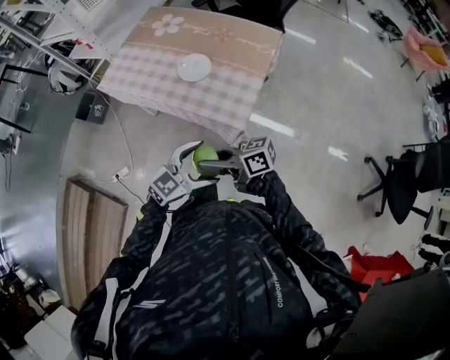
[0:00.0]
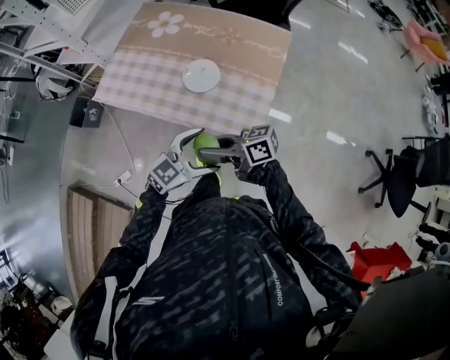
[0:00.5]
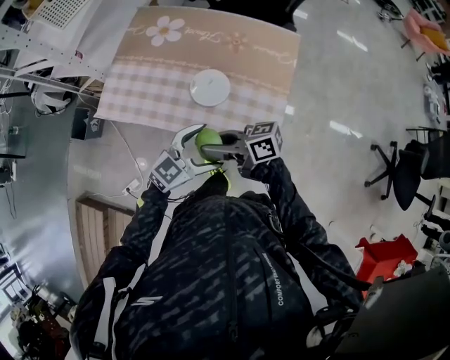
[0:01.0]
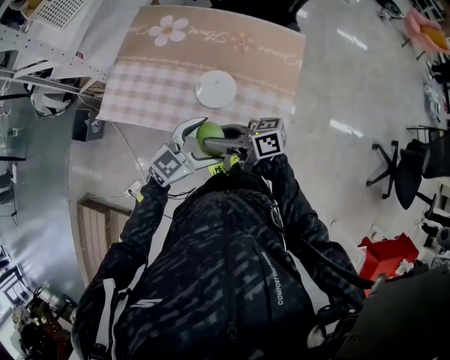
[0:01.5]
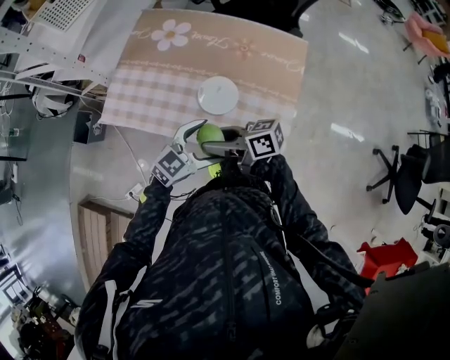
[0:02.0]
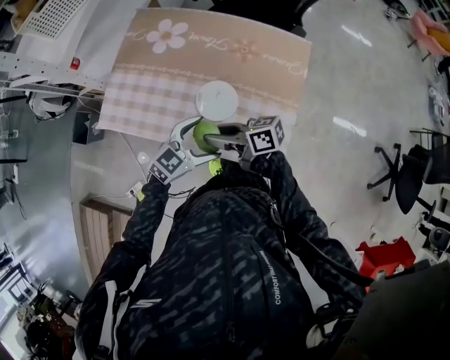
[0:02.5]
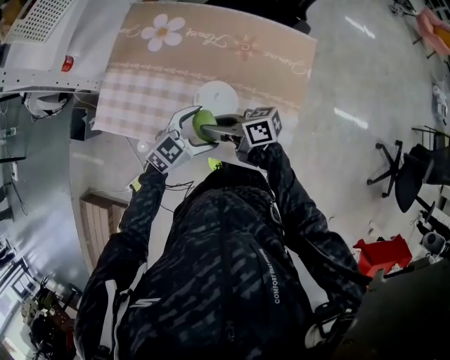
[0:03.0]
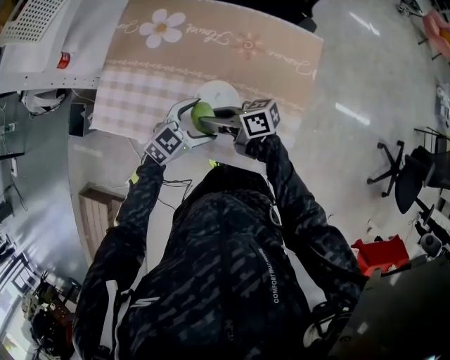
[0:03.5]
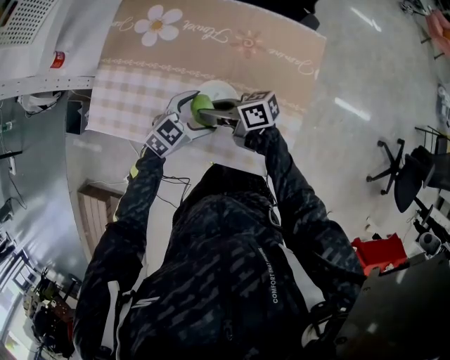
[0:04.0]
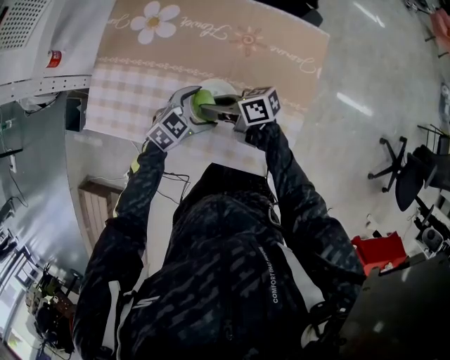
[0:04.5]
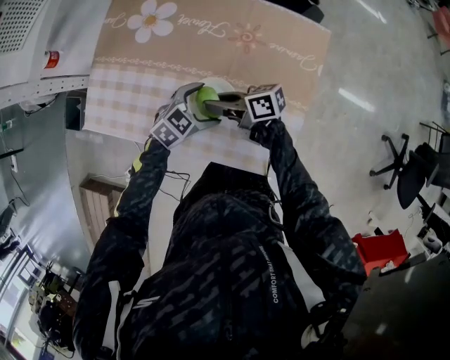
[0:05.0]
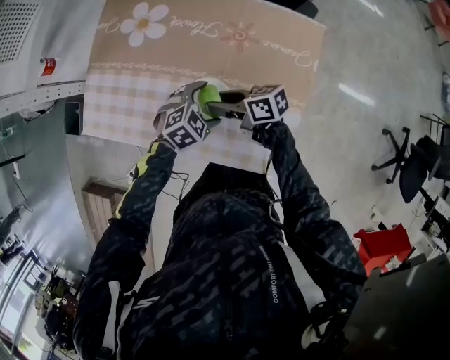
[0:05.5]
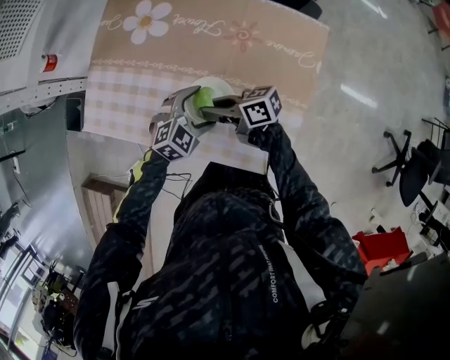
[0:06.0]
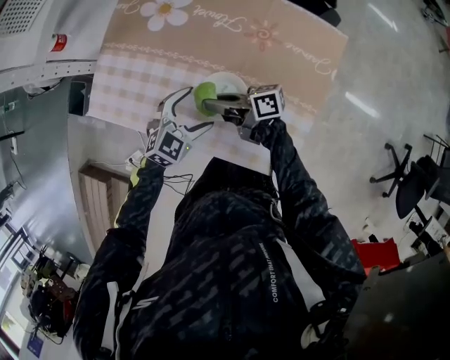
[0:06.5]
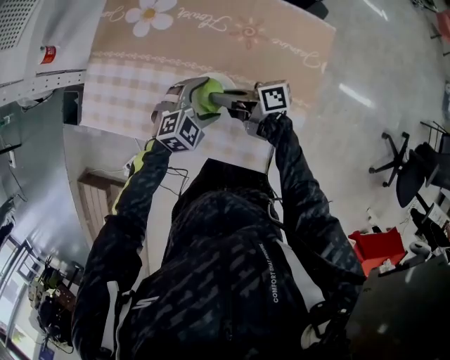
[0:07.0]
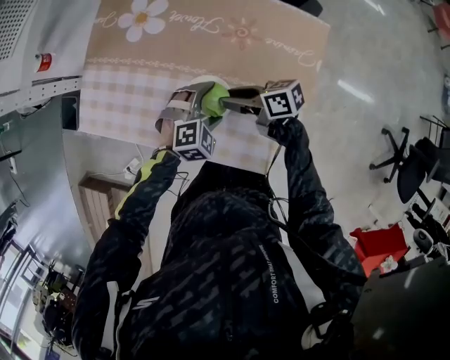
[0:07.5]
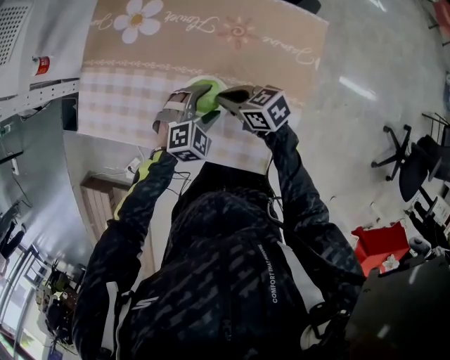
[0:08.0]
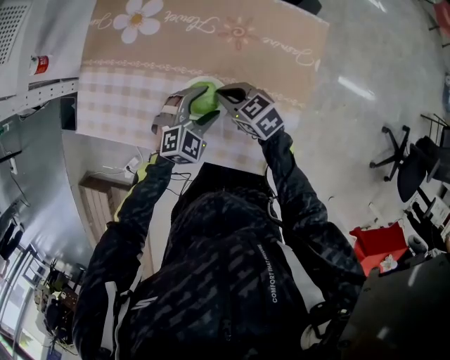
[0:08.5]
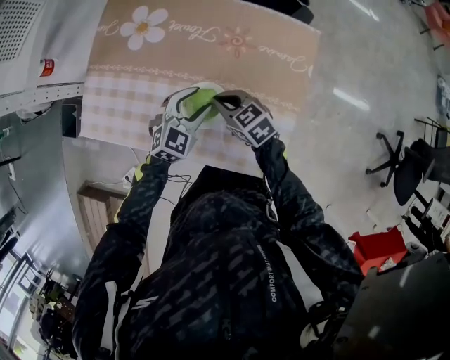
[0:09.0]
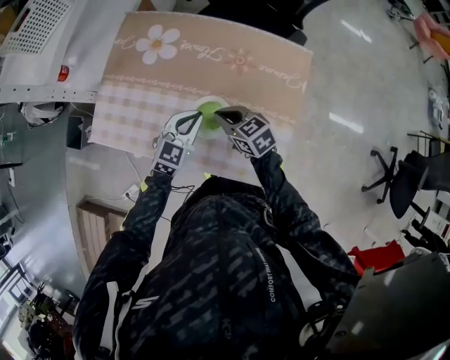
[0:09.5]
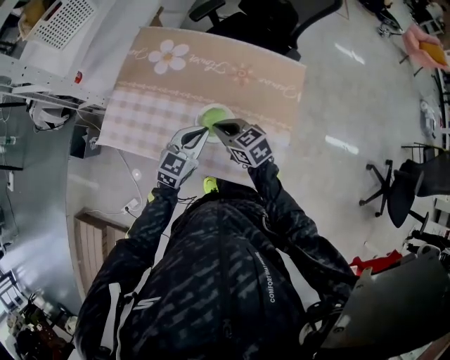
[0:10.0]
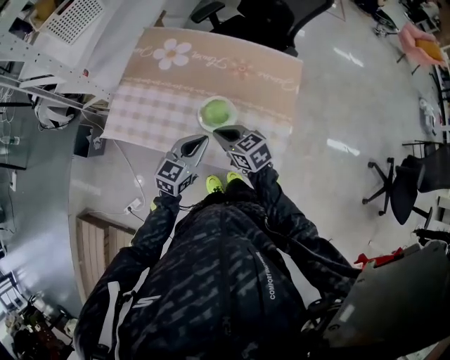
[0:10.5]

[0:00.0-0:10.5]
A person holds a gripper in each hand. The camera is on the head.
0:00.0 to 0:02.0: The right gripper moves roughly 30 cm, and opens. Meanwhile the left gripper moves some 30 cm.
0:02.0 to 0:04.0: The right gripper moves about 20 cm, and closes up; the left gripper changes place by approximately 20 cm.
0:04.0 to 0:06.5: The right gripper opens and closes again.
0:06.5 to 0:08.5: The right gripper moves approximately 10 cm, angles its fingers downward, by about 40 degrees, and opens and closes again; the left gripper ends up approximately 10 cm from where it was.
0:08.5 to 0:10.5: The grippers both shift upward, backward and to the left by some 20 cm. The left gripper turns by roughly 50 degrees, and closes.

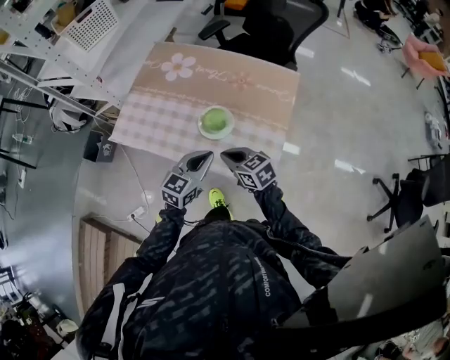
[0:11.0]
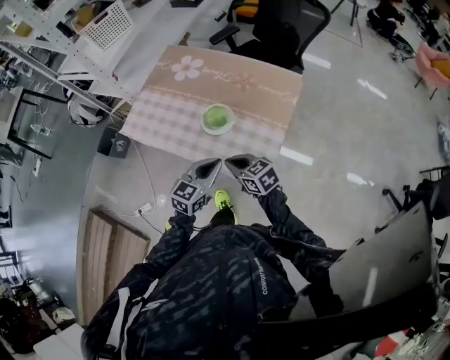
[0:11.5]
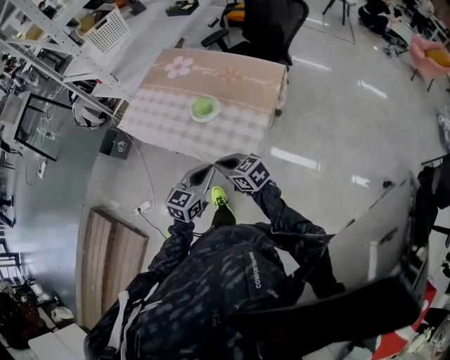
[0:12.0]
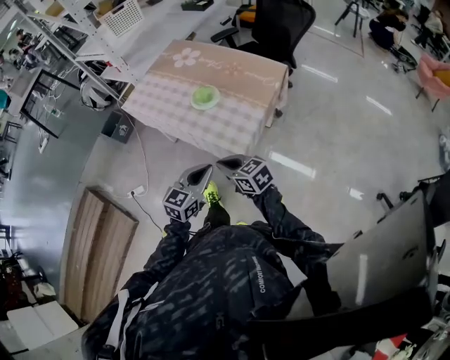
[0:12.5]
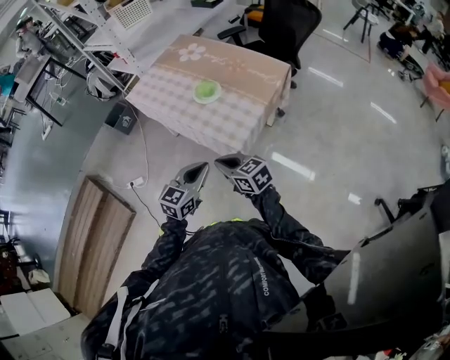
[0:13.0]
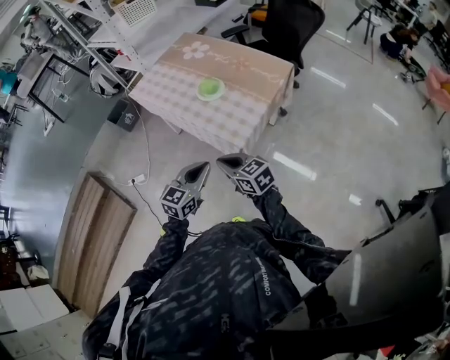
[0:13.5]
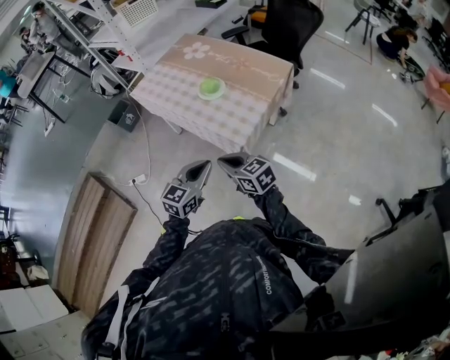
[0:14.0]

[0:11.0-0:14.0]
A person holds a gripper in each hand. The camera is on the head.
0:11.0 to 0:12.5: The two grippers go approximately 25 cm backward.
0:12.5 to 0:14.0: The right gripper moves backward, roughly 5 cm.

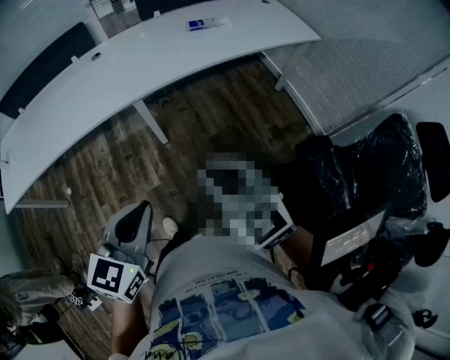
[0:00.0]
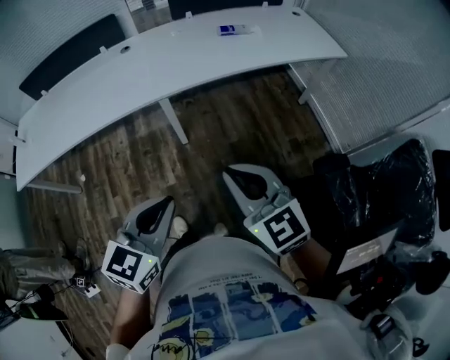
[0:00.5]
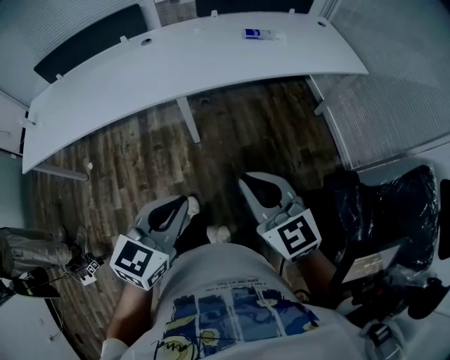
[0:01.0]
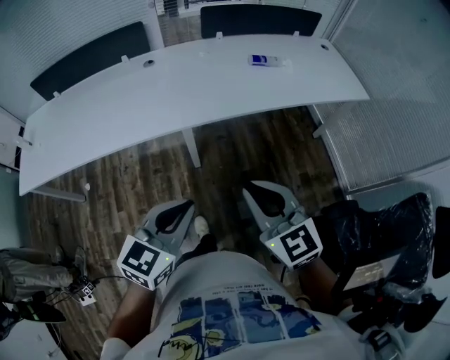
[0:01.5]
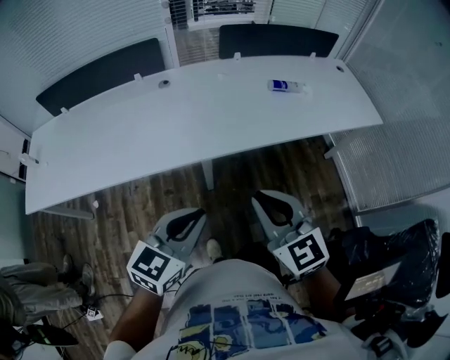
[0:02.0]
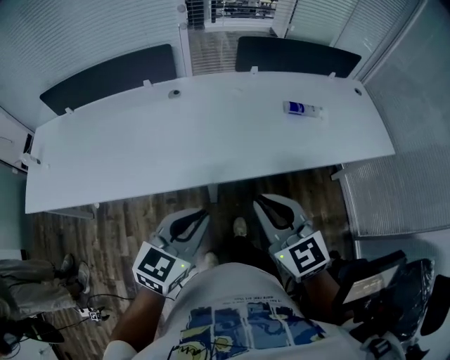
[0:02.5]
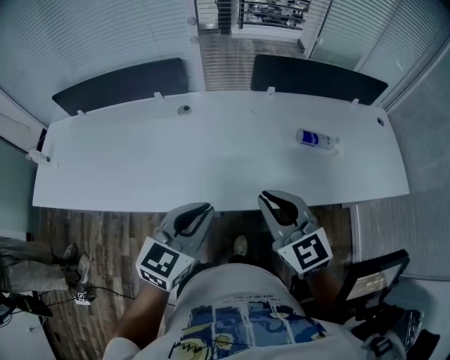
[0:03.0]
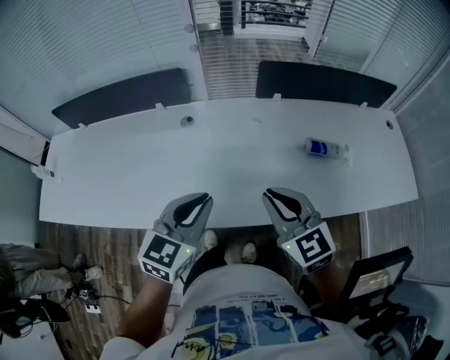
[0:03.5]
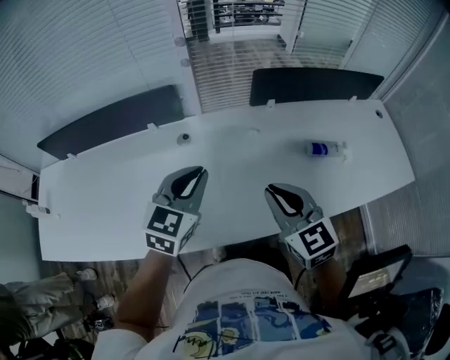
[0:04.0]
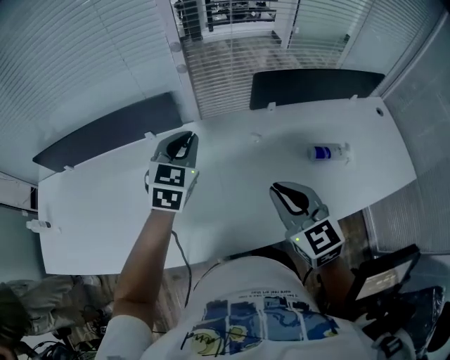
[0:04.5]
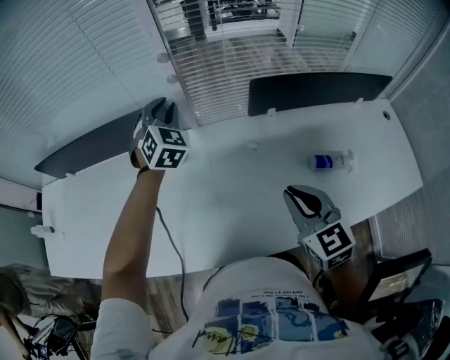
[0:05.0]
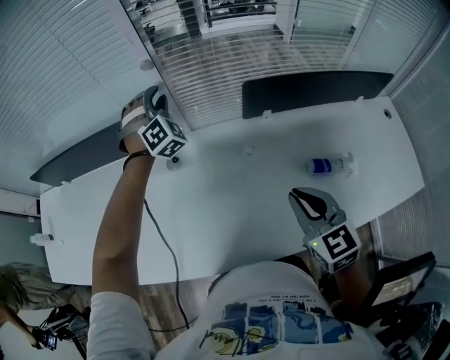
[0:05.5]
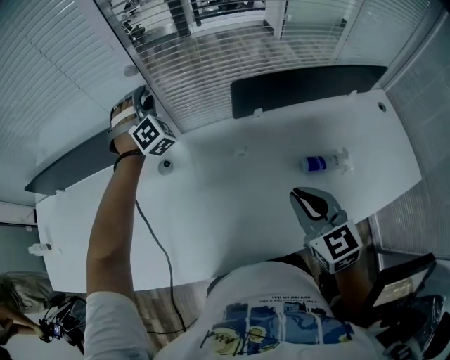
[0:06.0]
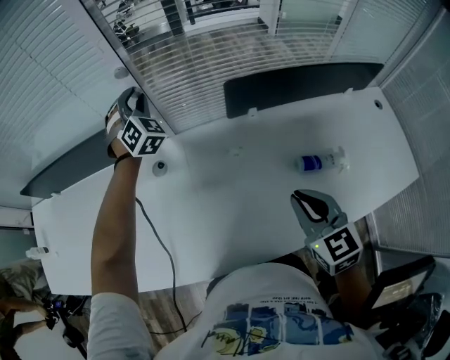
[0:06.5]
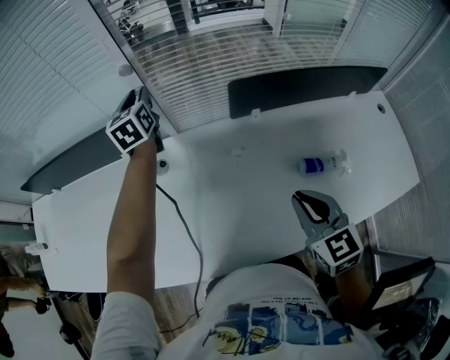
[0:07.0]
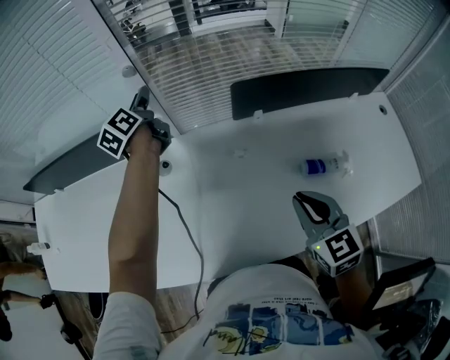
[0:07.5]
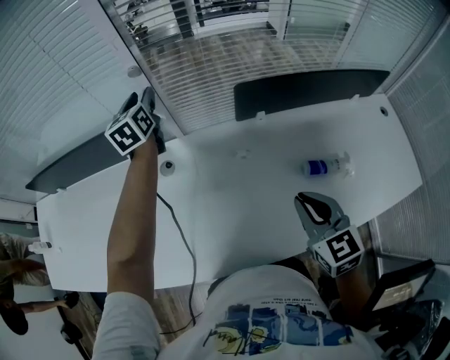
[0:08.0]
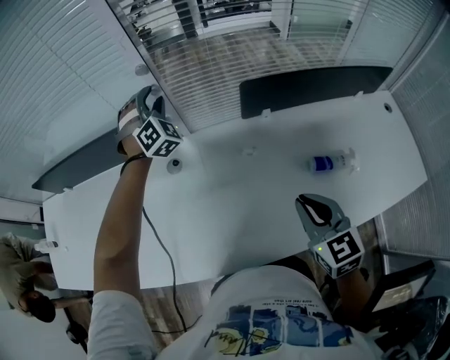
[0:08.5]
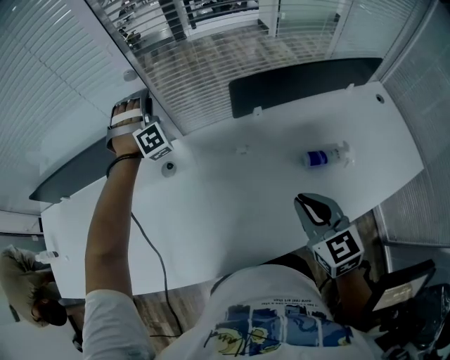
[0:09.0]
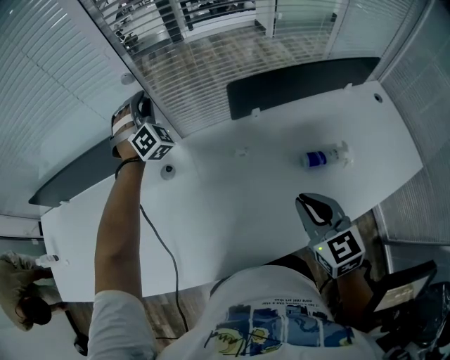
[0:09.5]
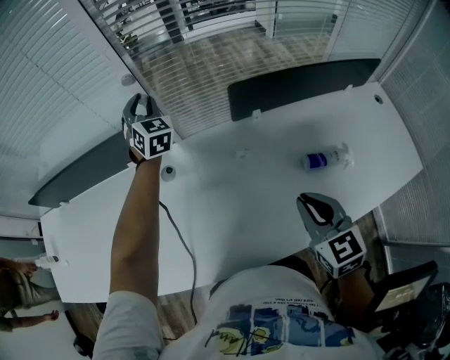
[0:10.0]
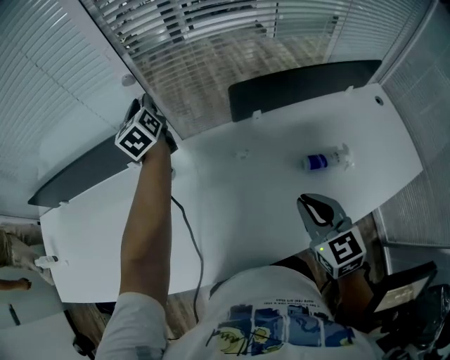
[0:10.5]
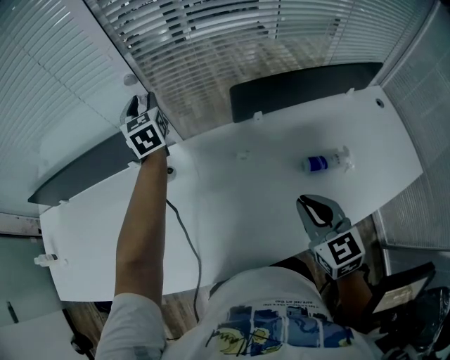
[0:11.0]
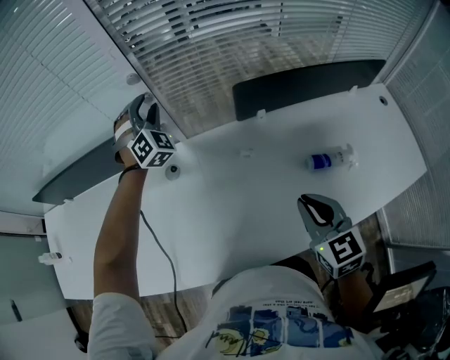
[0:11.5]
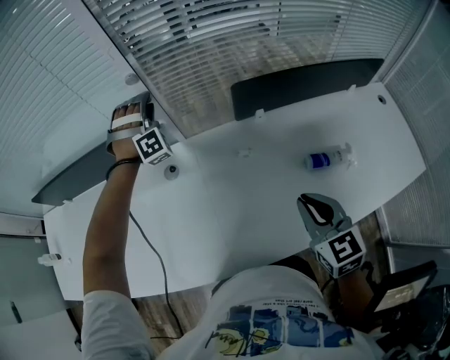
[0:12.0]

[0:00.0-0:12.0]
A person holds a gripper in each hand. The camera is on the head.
0:00.0 to 0:02.0: The left gripper shifts about 25 cm forward. The right gripper travels forward and to the left by about 25 cm.
0:02.0 to 0:04.0: Both grippers travel together forward, approximately 40 cm.
0:04.0 to 0:06.0: The right gripper goes roughly 15 cm to the right and forward, while the left gripper moves forward, approximately 40 cm, rolls clockwise, seen from behind, by about 60 degrees, and opens up.
0:06.0 to 0:08.0: The left gripper rotates around the line of its fingers by approximately 90 degrees, counterclockwise from behind.
0:08.0 to 0:10.0: The left gripper rolls clockwise, seen from behind, by roughly 40 degrees.
0:10.0 to 0:12.0: The left gripper twists approximately 70 degrees clockwise, seen from behind.

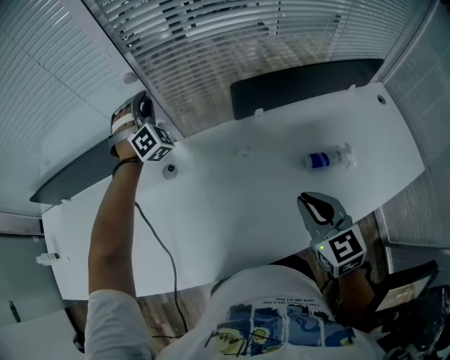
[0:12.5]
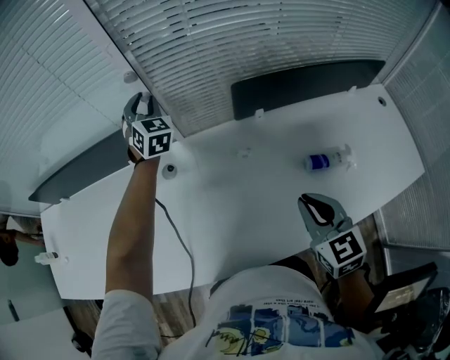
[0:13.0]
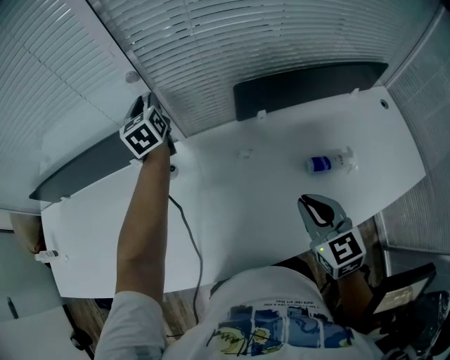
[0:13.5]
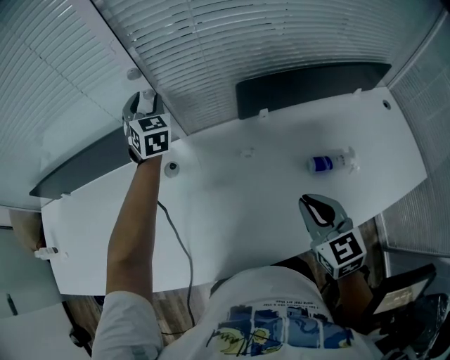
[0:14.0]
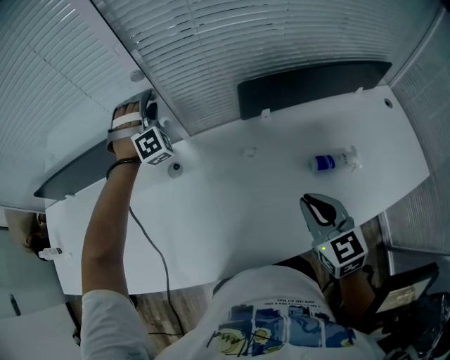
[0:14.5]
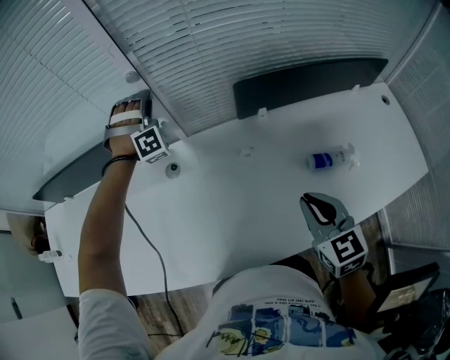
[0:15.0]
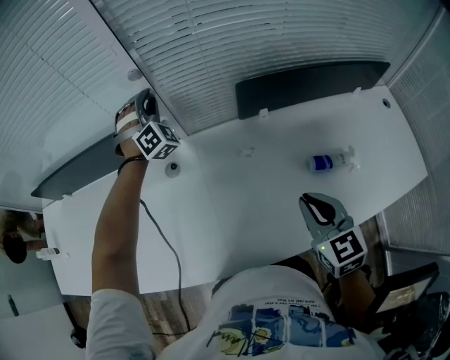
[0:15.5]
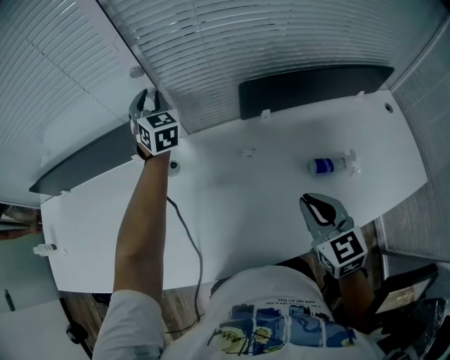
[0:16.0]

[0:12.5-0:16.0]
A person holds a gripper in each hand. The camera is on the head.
0:14.5 to 0:16.0: The left gripper rotates around the line of its fingers by roughly 70 degrees, counterclockwise from behind.
